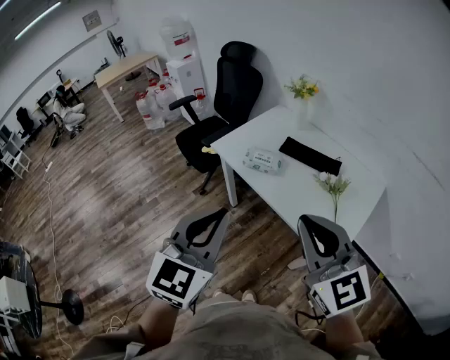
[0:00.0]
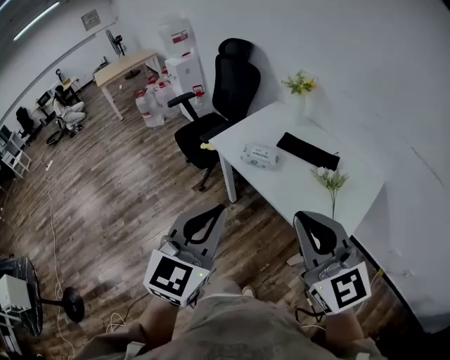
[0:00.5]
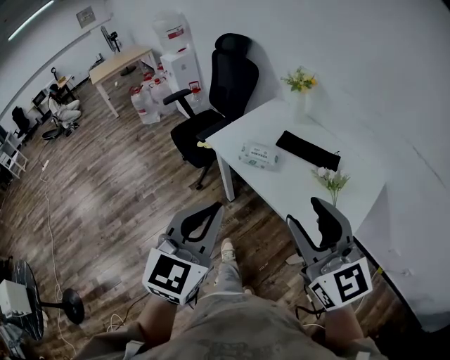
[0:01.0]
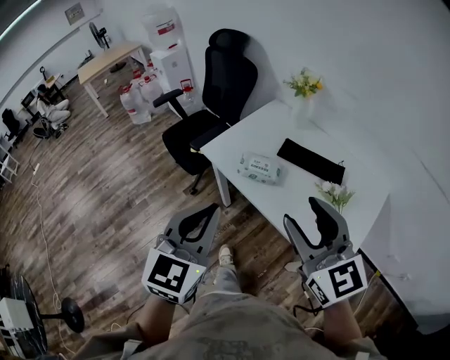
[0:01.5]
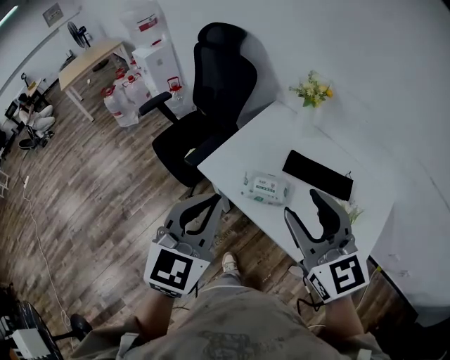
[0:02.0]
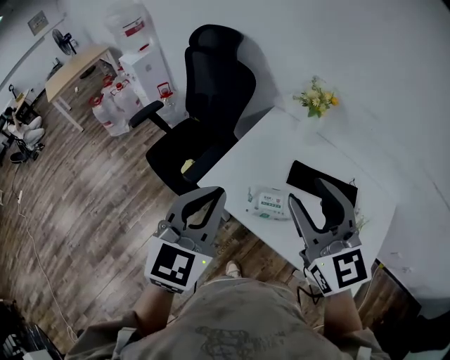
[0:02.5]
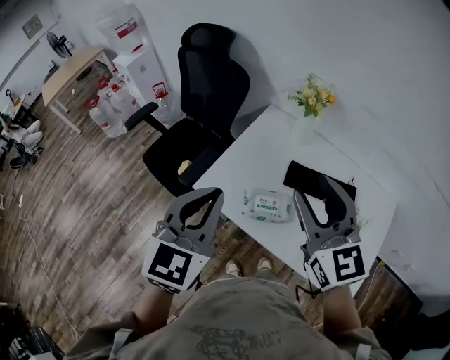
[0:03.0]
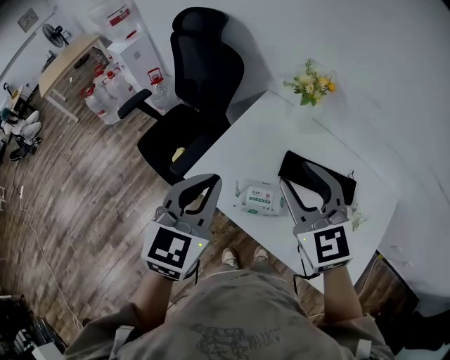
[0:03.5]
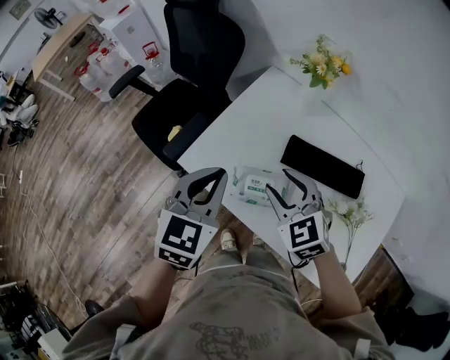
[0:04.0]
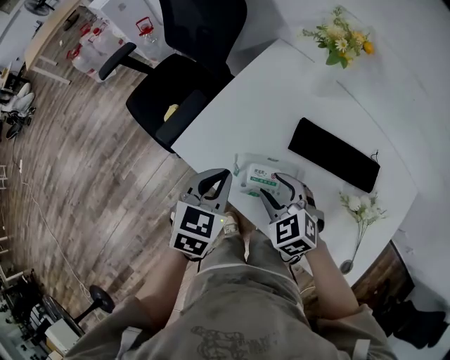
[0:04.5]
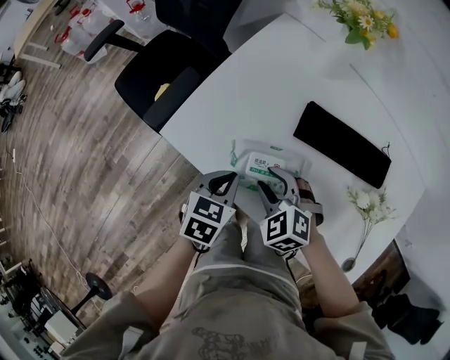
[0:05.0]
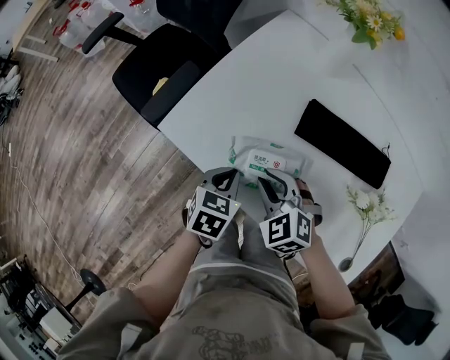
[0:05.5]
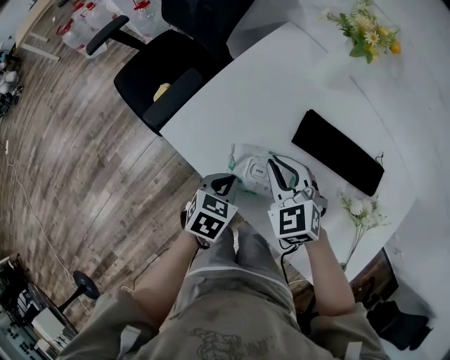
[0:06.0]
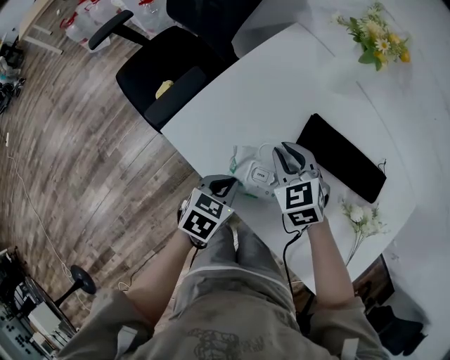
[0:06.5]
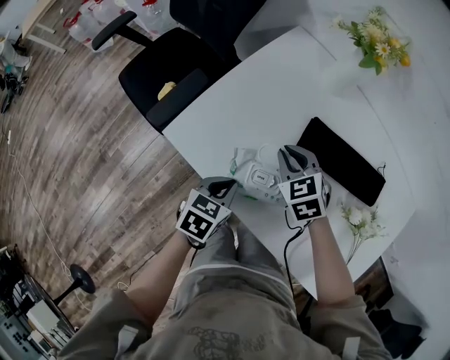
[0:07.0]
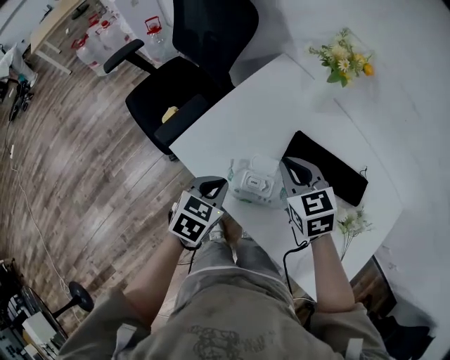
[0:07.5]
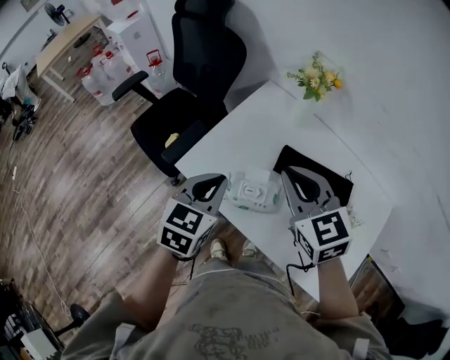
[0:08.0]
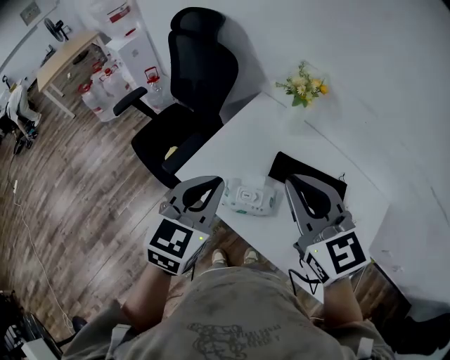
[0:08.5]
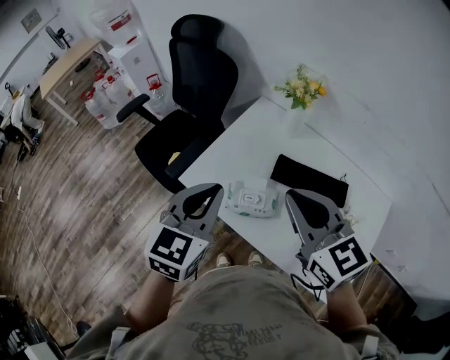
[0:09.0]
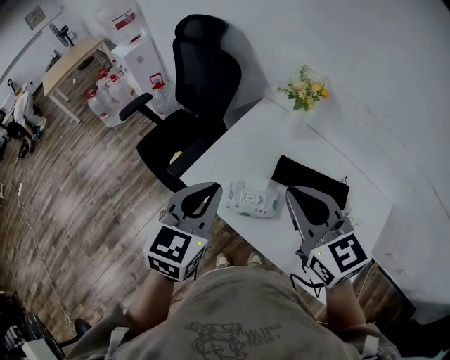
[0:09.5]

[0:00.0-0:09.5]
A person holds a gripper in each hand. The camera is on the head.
0:00.0 to 0:02.0: The grippers both shift forward by approximately 30 cm. The right gripper opens up.
0:02.0 to 0:04.0: The right gripper moves downward and forward, roughly 25 cm, and swivels approximately 30 degrees. The left gripper heads forward and downward, covering roughly 20 cm.
0:04.0 to 0:05.5: The left gripper goes approximately 30 cm downward, and turns by approximately 30 degrees. The right gripper moves downward, roughly 20 cm, and closes.
0:05.5 to 0:07.5: The right gripper moves up and down over some 10 cm, changing direction 2 times, and turns by some 20 degrees; the left gripper is displaced upward by about 10 cm.
0:07.5 to 0:09.5: The left gripper moves upward, roughly 25 cm, and changes its angle by about 30 degrees, while the right gripper moves upward and backward, some 25 cm, and changes its angle by approximately 20 degrees.

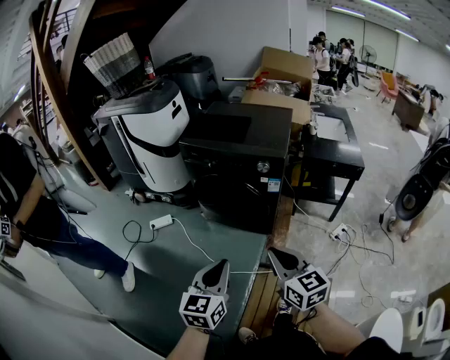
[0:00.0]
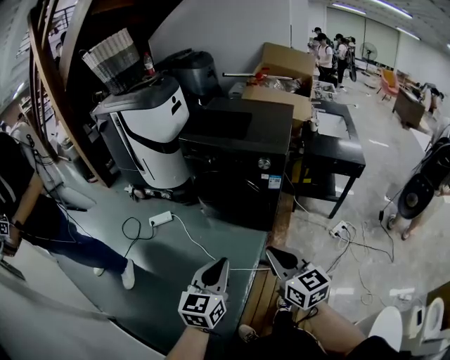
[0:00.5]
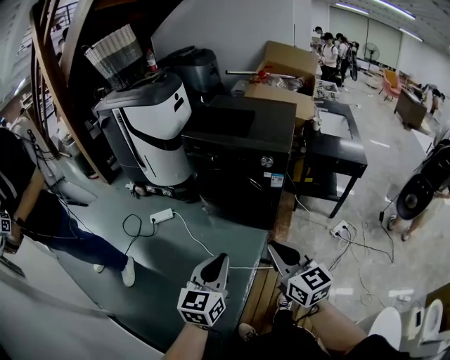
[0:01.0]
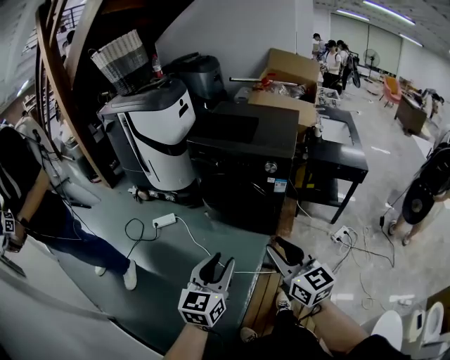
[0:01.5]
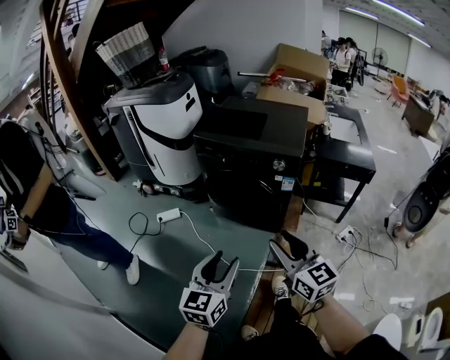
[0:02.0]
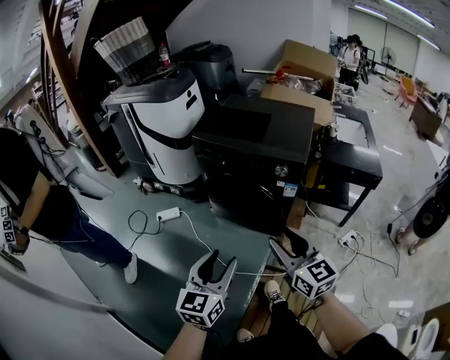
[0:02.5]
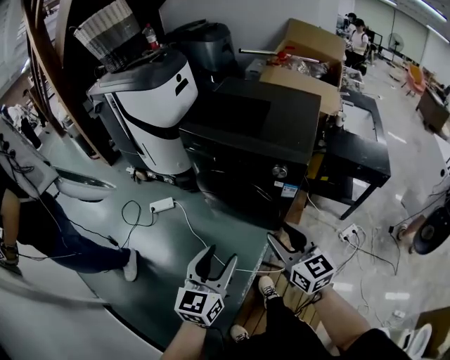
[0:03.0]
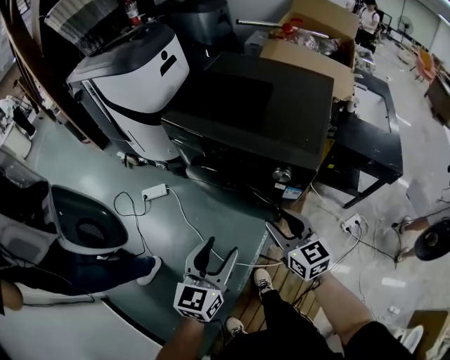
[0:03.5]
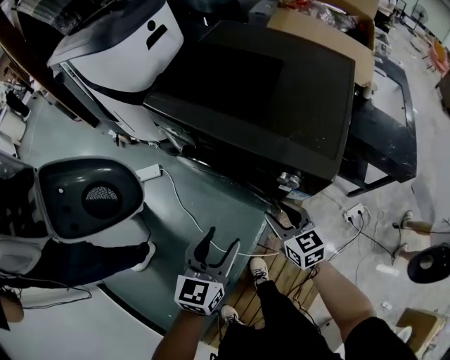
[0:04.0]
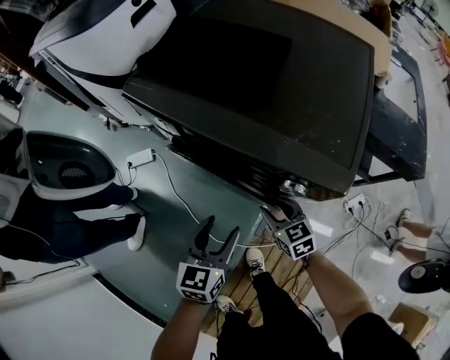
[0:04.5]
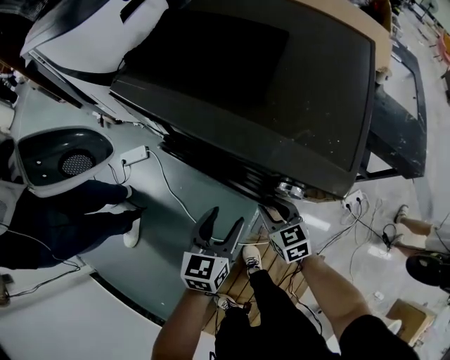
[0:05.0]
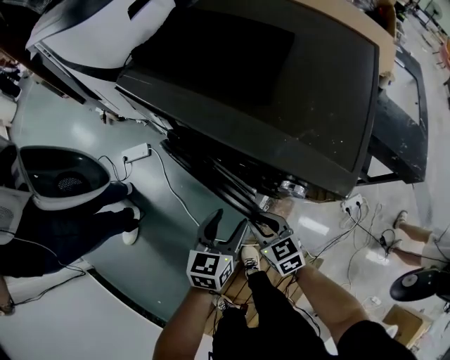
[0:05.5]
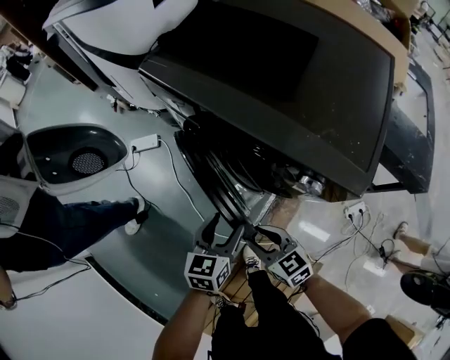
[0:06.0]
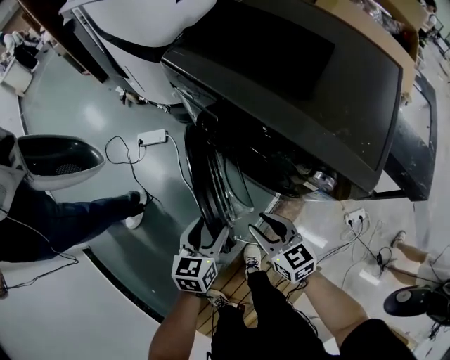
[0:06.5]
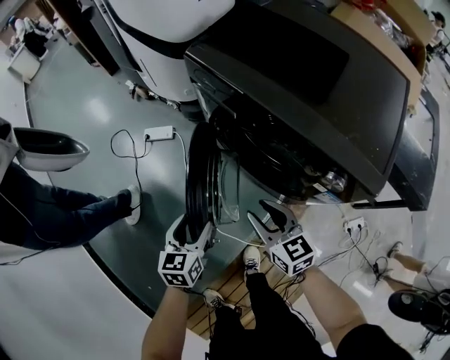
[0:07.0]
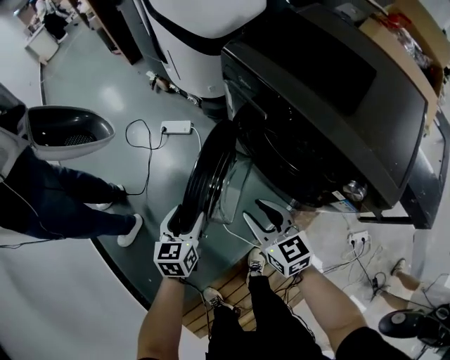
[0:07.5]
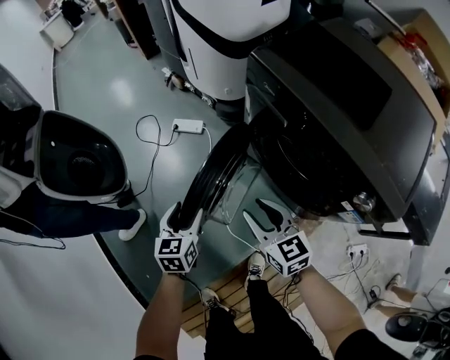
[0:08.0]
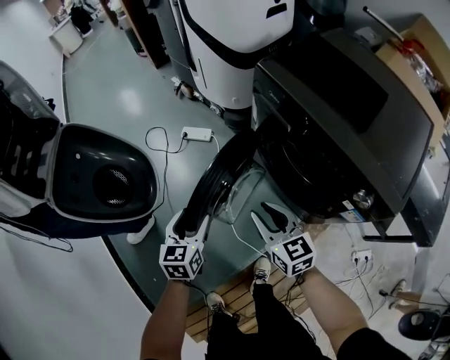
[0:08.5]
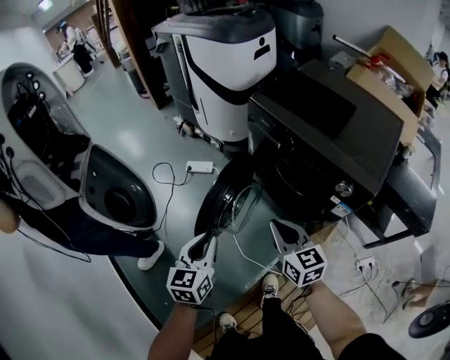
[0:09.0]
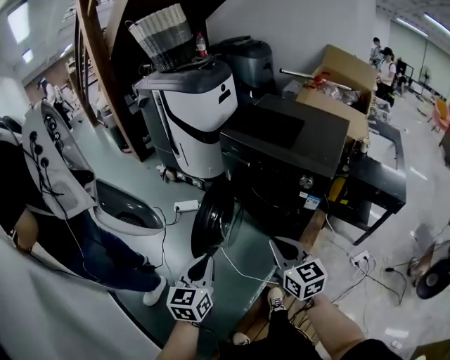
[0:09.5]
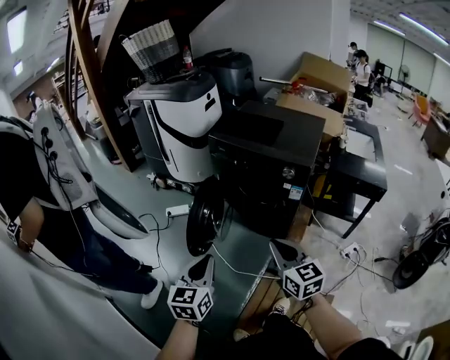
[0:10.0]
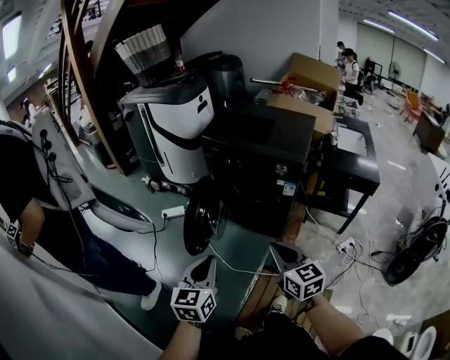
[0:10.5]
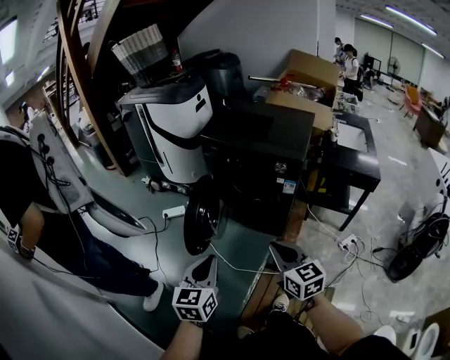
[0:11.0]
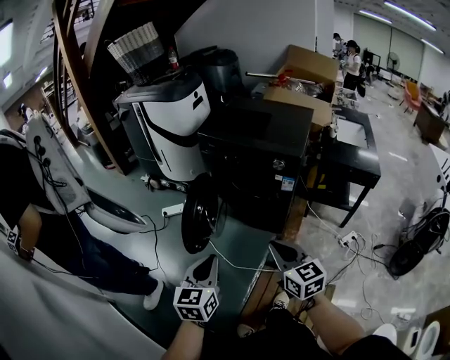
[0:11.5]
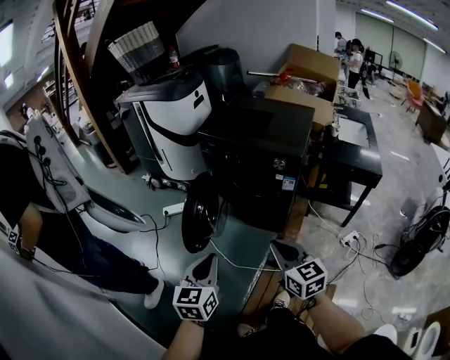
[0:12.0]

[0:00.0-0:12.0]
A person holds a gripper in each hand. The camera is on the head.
0:00.0 to 0:02.0: The left gripper opens its fingers, while the right gripper shifts by some 5 cm, and opens up.
0:02.0 to 0:04.0: The grippers both shift forward and downward by some 40 cm. The right gripper turns by some 20 degrees.
0:04.0 to 0:06.0: The right gripper is displaced downward, to the left and backward by roughly 15 cm, and rotates about 20 degrees; the left gripper travels downward by some 15 cm.
0:06.0 to 0:08.0: The right gripper heads to the left, forward and upward, covering approximately 20 cm, while the left gripper is displaced to the left by roughly 30 cm, and changes its angle by roughly 30 degrees.
0:08.0 to 0:10.0: The left gripper ends up roughly 40 cm from where it was, turns by approximately 30 degrees, and closes up, while the right gripper changes place by some 40 cm, turns by approximately 30 degrees, and closes up.
0:10.0 to 0:12.0: The grippers stay close to where they were, moving slightly.

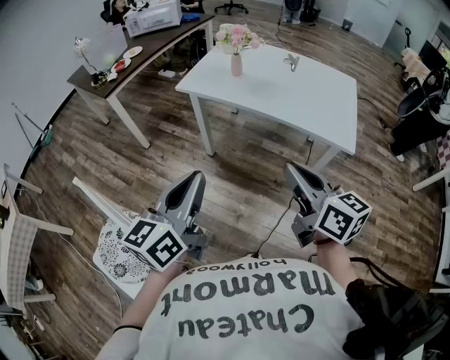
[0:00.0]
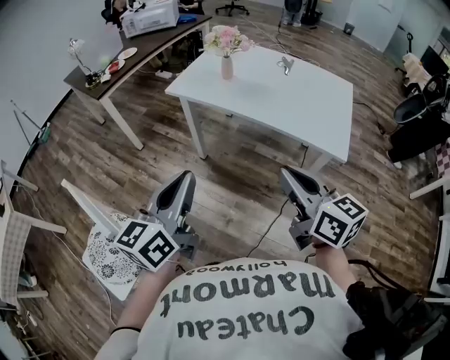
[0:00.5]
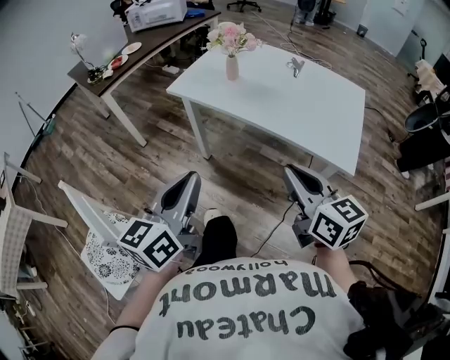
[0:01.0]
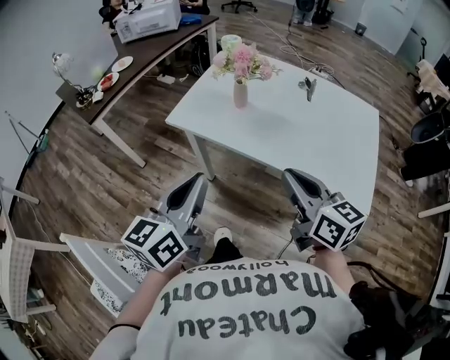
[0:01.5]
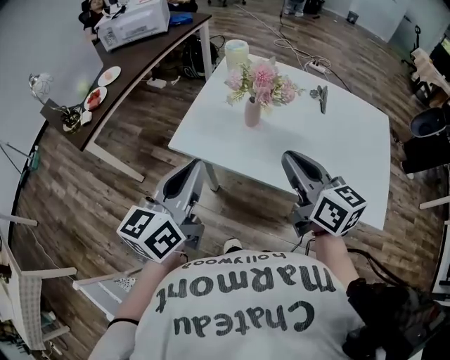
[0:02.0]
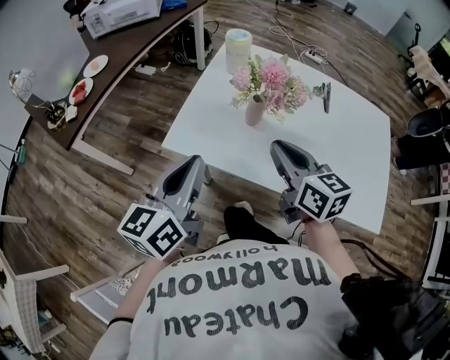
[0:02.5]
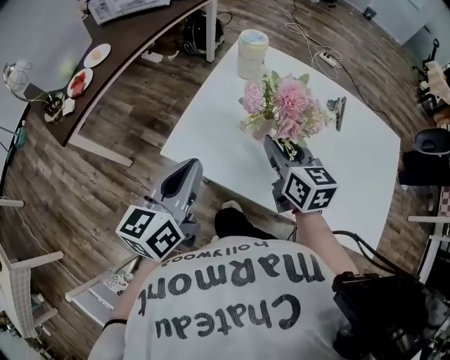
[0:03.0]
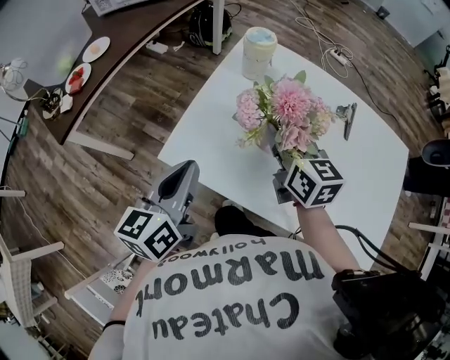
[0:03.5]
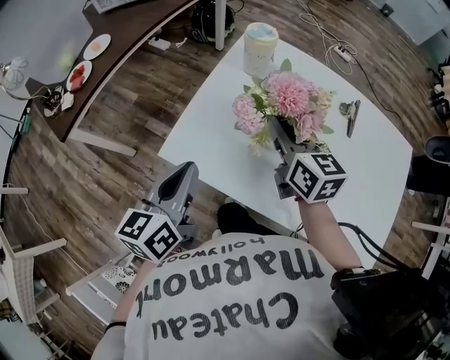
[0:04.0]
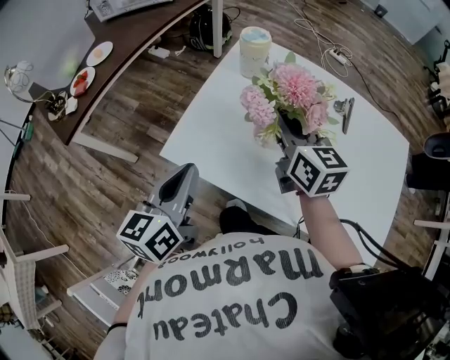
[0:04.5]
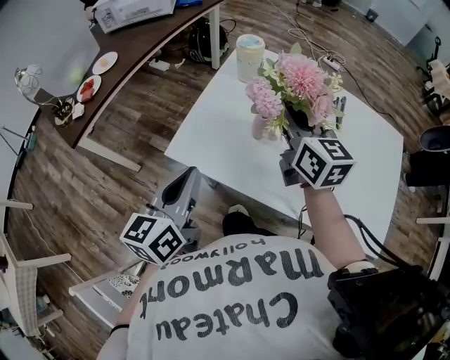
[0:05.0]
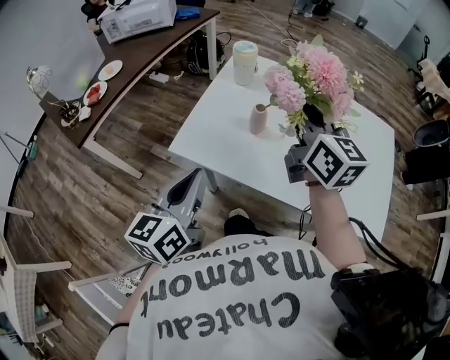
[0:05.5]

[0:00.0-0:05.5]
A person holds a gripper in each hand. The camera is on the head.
0:00.0 to 0:02.0: Both grippers travel together forward, approximately 40 cm.
0:02.0 to 0:03.5: The left gripper moves forward and downward, some 15 cm. The right gripper heads forward, covering roughly 25 cm, and opens.
0:03.5 to 0:05.5: The left gripper is displaced backward by roughly 10 cm; the right gripper shifts roughly 15 cm upward and backward, and closes.
